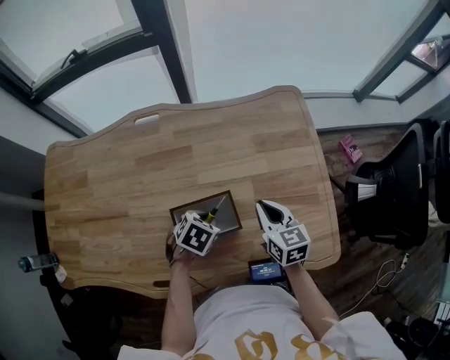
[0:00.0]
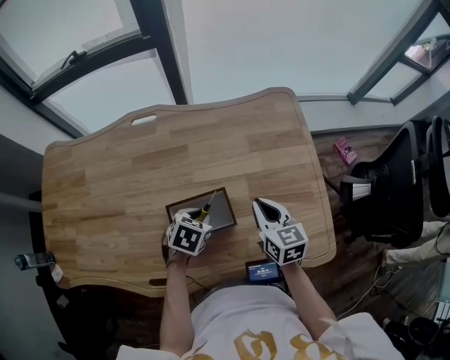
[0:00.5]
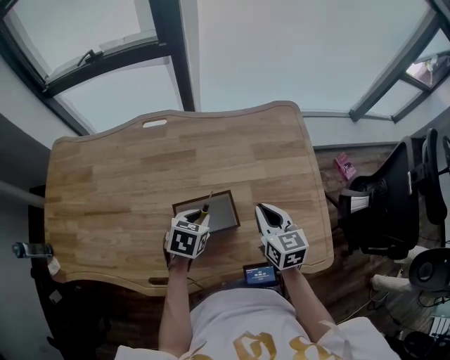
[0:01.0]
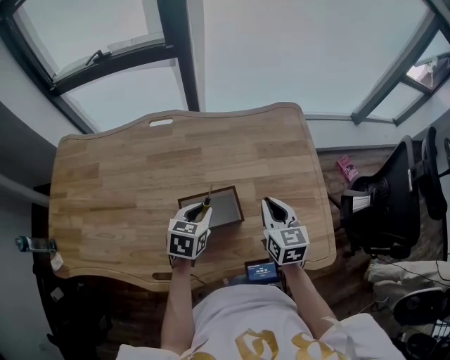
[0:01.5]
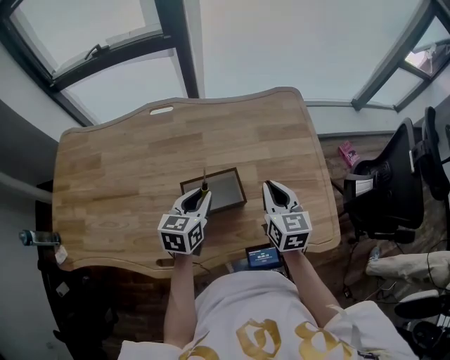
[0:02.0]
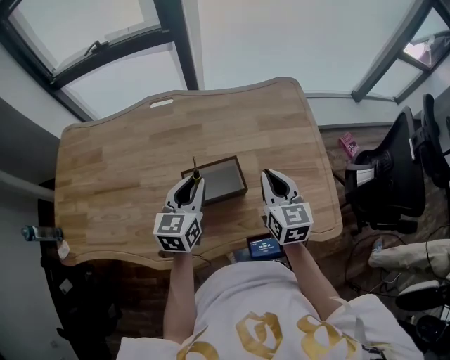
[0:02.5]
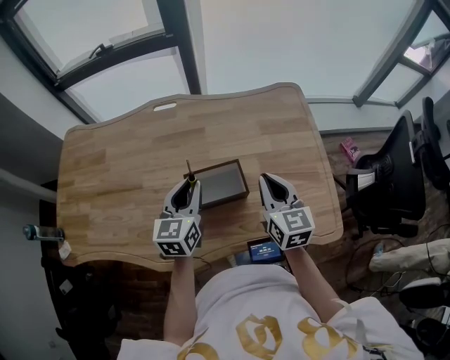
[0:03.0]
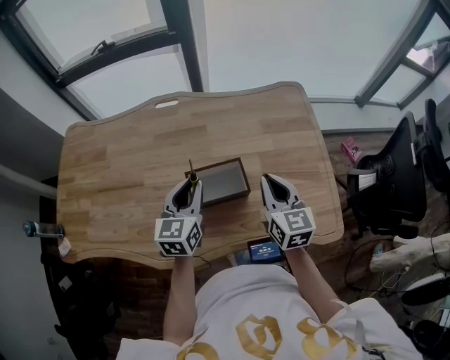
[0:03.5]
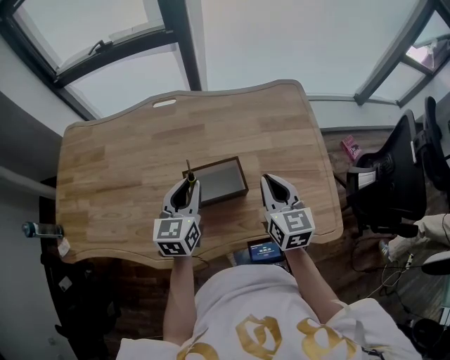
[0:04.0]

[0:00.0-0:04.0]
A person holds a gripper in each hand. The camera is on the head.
0:00.0 to 0:02.0: The left gripper heads upward, covering about 10 cm, and angles its fingers upward, by about 40 degrees, while the right gripper shifts approximately 5 cm upward.
0:02.0 to 0:04.0: The left gripper ends up roughly 5 cm from where it was.

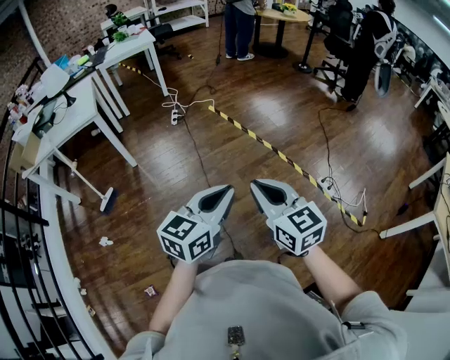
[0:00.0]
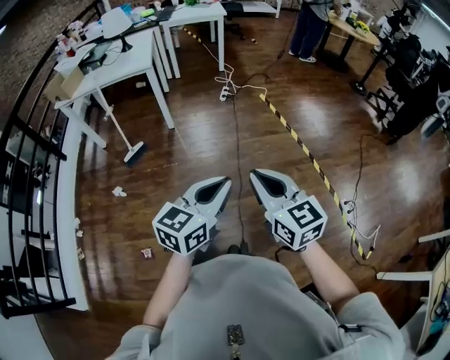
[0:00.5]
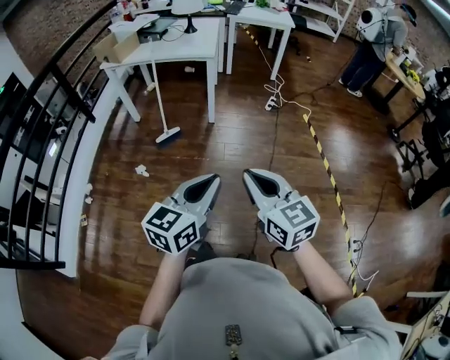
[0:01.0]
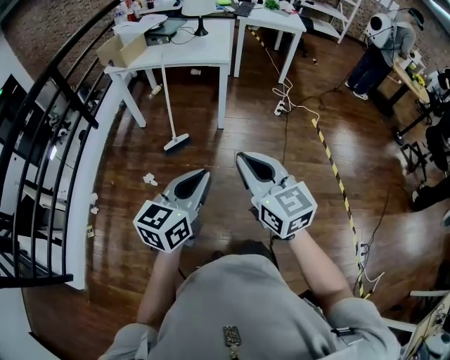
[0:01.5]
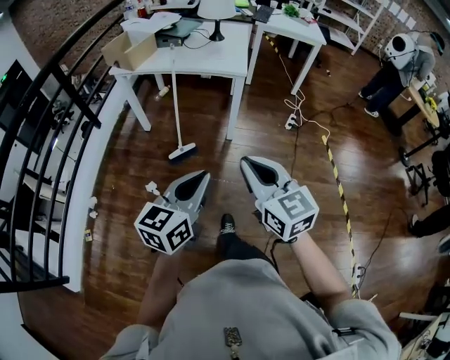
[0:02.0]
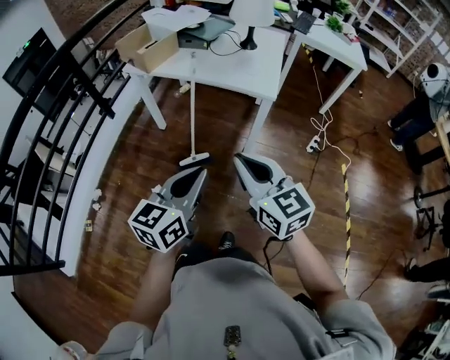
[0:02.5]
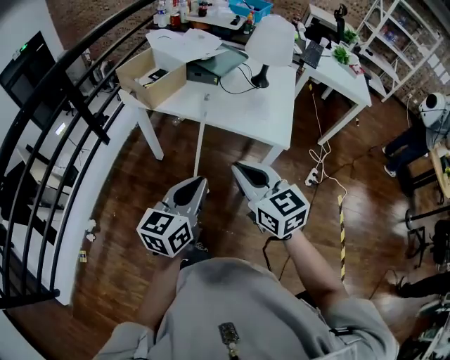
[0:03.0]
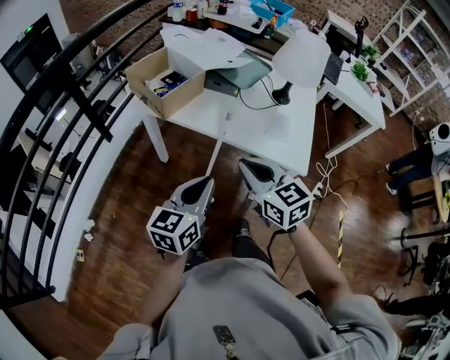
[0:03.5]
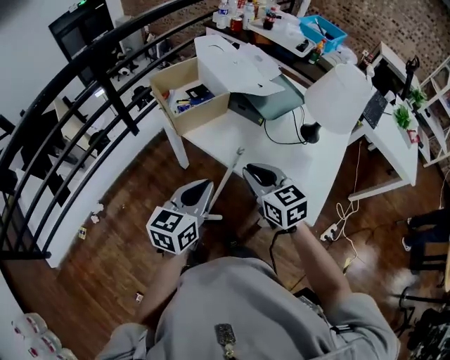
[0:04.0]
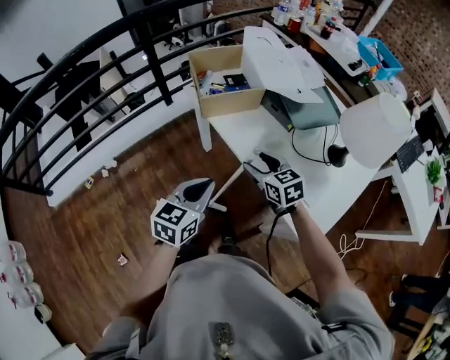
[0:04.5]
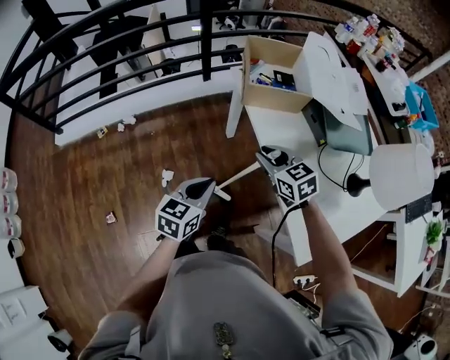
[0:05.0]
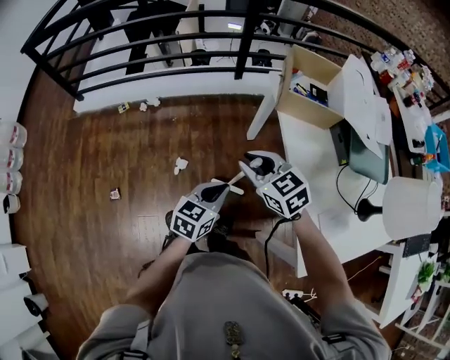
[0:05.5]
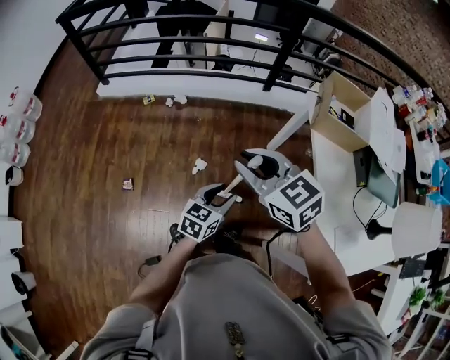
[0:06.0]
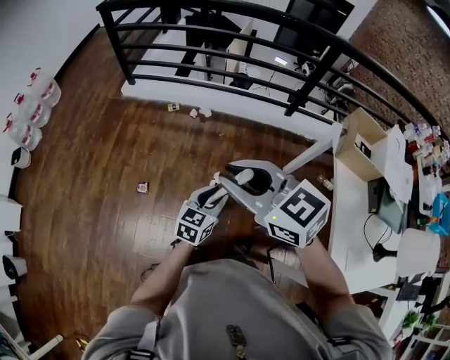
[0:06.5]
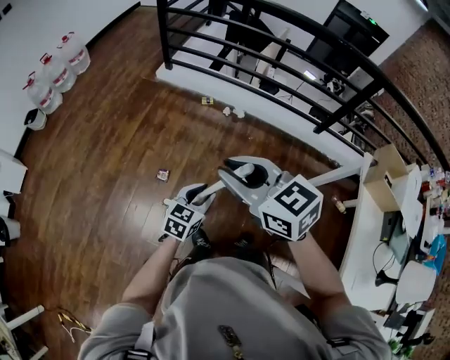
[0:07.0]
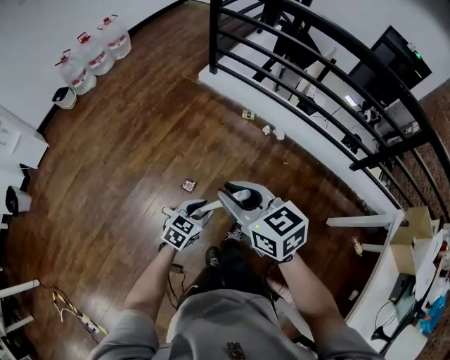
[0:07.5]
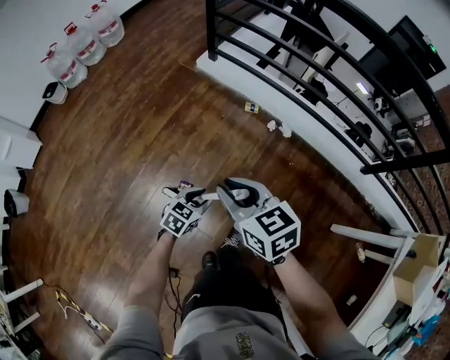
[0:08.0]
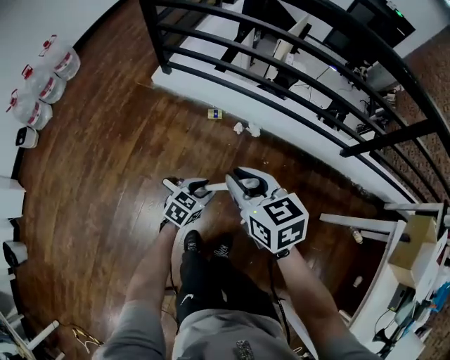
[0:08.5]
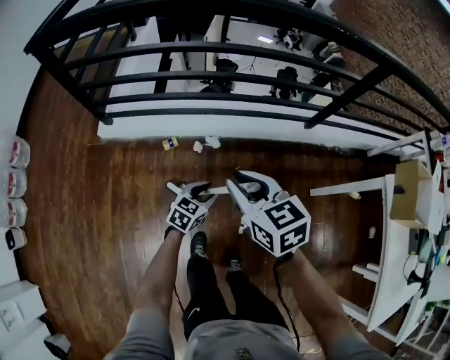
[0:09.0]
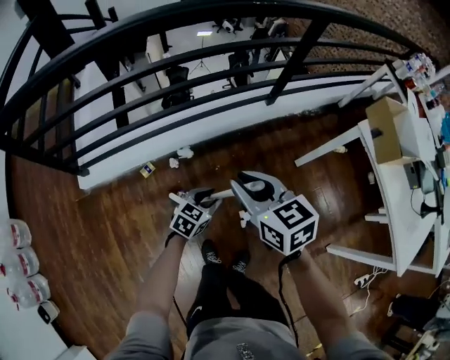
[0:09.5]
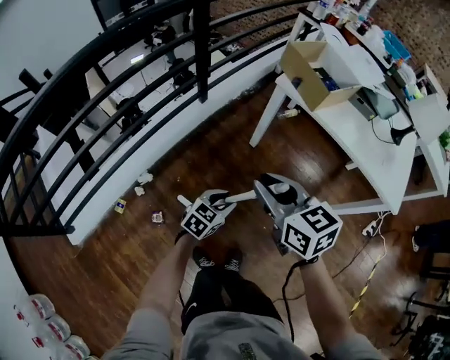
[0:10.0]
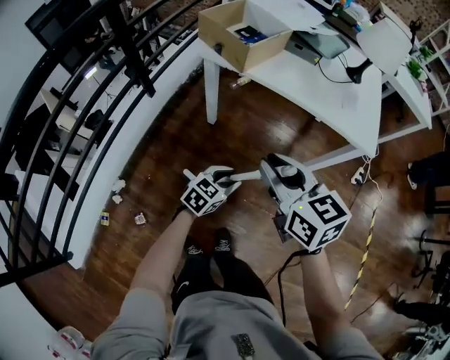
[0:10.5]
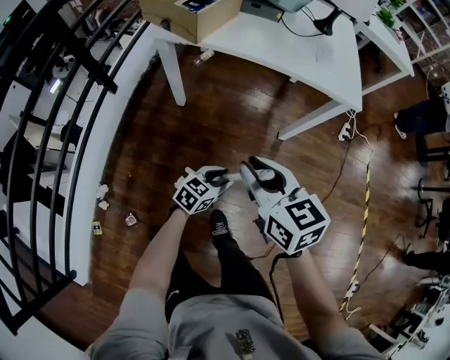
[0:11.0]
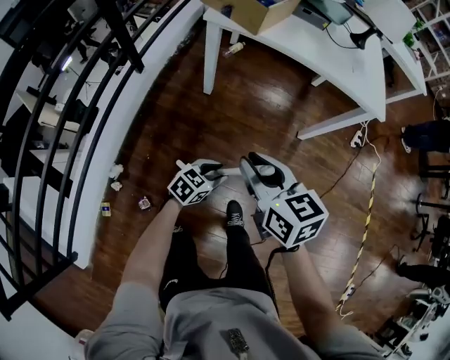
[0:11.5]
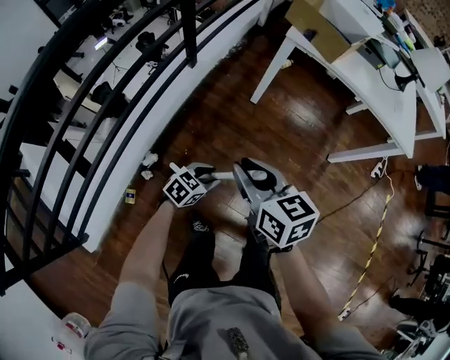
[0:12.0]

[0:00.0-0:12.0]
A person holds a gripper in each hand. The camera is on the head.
0:00.0 to 0:02.0: The two grippers travel together, roughly 60 cm. The right gripper rotates some 30 degrees. The left gripper turns by about 40 degrees.
0:02.0 to 0:04.0: The two grippers travel together, roughly 60 cm. The right gripper changes its angle by some 30 degrees; the left gripper swivels some 30 degrees.
0:04.0 to 0:06.0: The left gripper moves approximately 25 cm, swivels roughly 40 degrees, and opens its fingers, while the right gripper moves approximately 10 cm downward and comes back, turns by roughly 70 degrees, and opens and closes again.
0:06.0 to 0:08.0: The two grippers travel together, approximately 50 cm. The left gripper swivels some 30 degrees; the right gripper turns by about 30 degrees.
0:08.0 to 0:10.0: The pair of grippers is taken roughly 50 cm. The right gripper turns by roughly 90 degrees; the left gripper rotates approximately 90 degrees.
0:10.0 to 0:12.0: The left gripper changes its angle by some 20 degrees; the right gripper moves about 15 cm.

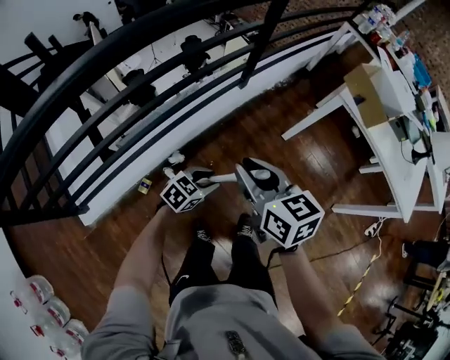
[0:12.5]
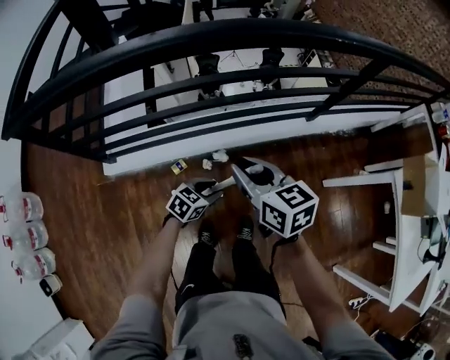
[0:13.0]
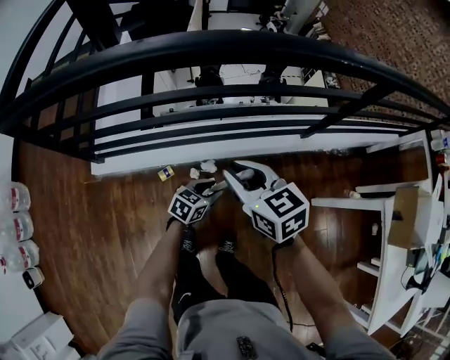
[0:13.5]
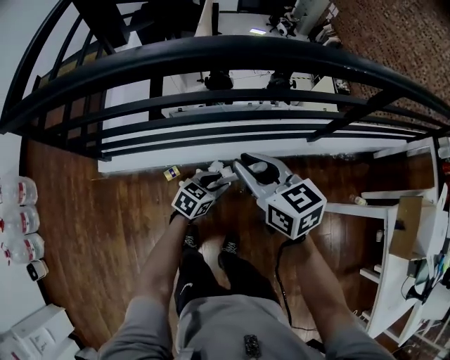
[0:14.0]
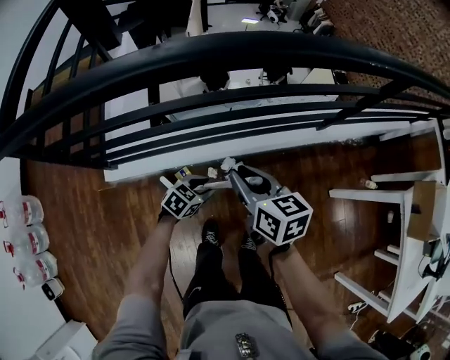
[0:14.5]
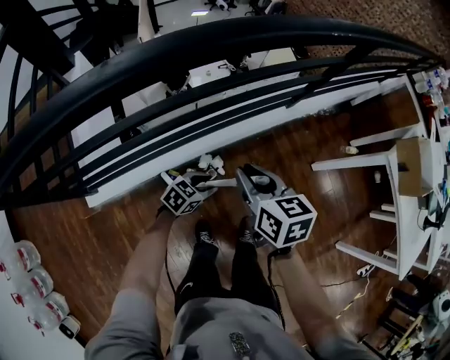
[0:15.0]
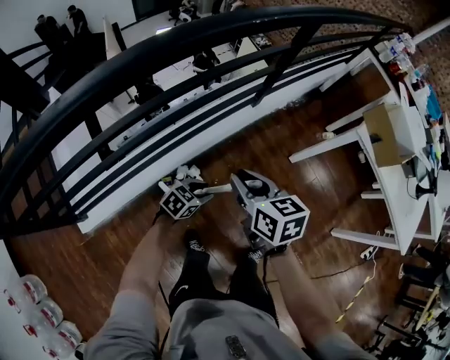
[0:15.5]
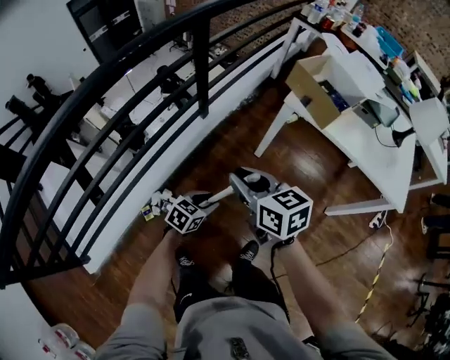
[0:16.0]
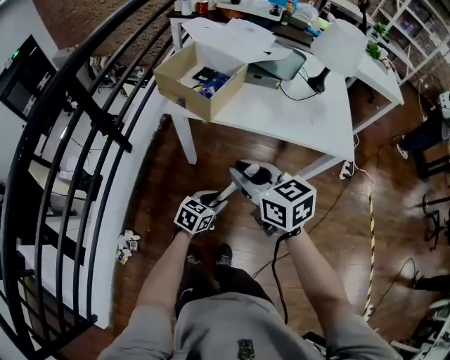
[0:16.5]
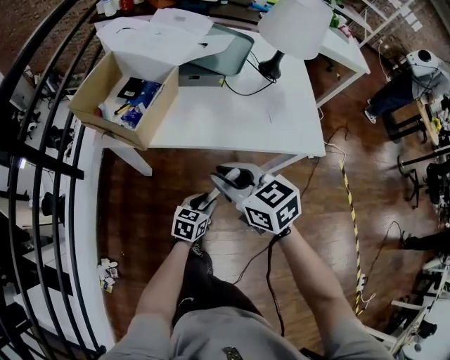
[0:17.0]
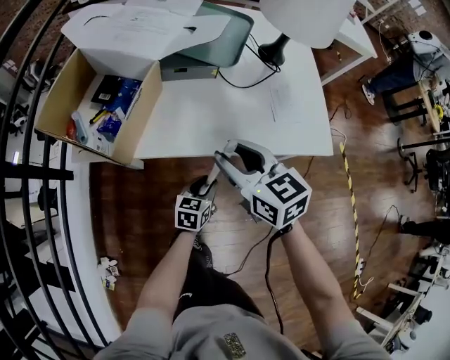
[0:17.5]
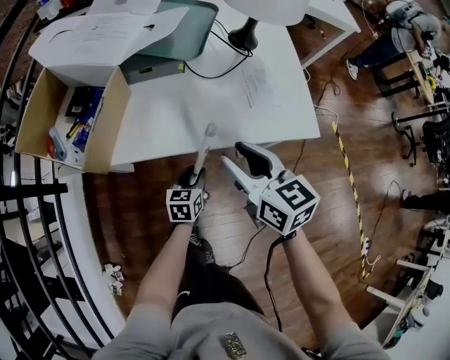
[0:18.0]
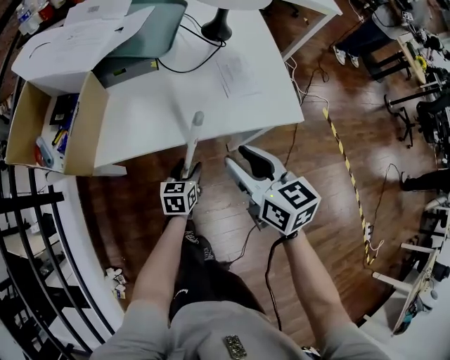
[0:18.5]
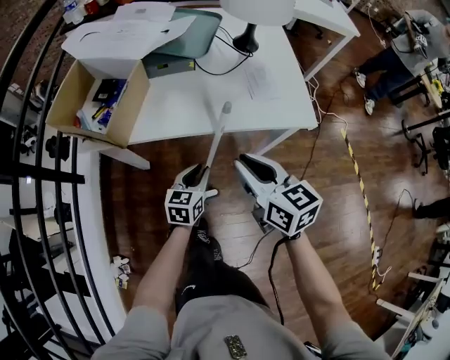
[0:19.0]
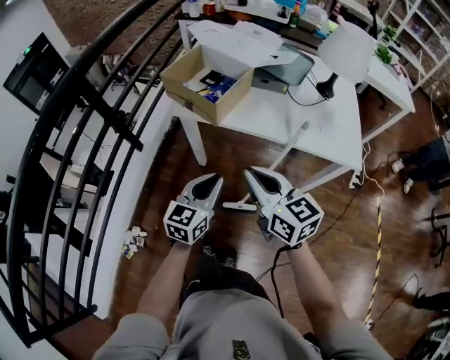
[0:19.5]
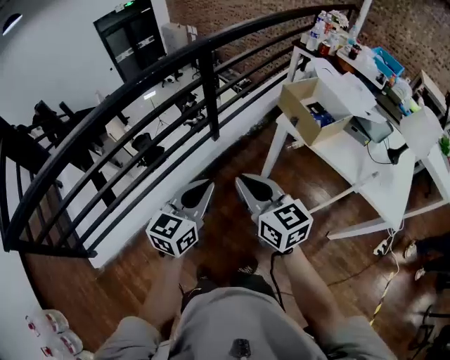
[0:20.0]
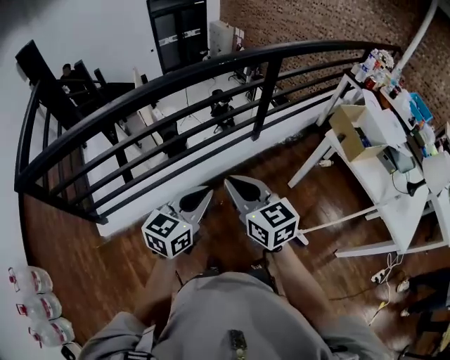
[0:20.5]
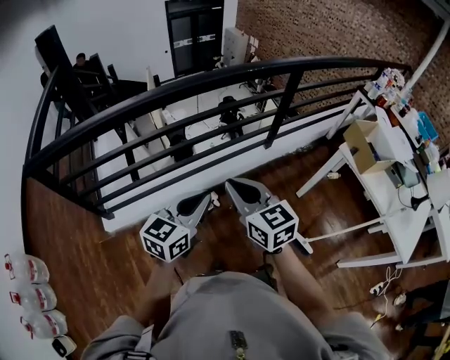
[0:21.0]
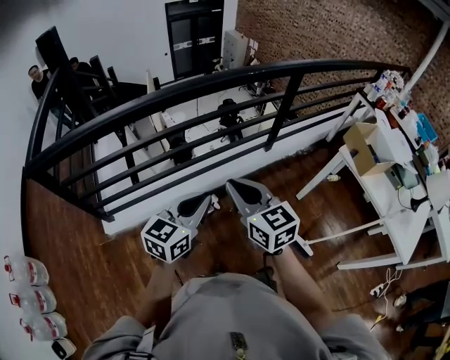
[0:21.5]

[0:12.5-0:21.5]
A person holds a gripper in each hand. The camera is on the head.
0:12.5 to 0:14.5: The right gripper shifts by some 25 cm, and rotates approximately 30 degrees. Meanwhile the left gripper changes place by approximately 25 cm, and changes its angle by about 40 degrees.
0:14.5 to 0:17.0: The pair of grippers is taken some 90 cm. The right gripper swivels about 60 degrees. The left gripper rotates some 60 degrees.
0:17.0 to 0:19.5: The left gripper goes roughly 25 cm upward and to the left, swivels some 30 degrees, and closes up. The right gripper is displaced backward and upward by approximately 15 cm, reaches some 15 cm to the right, then returns, and opens, then closes once more.
0:19.5 to 0:21.5: Both grippers are carried some 60 cm. The left gripper changes its angle by approximately 40 degrees. The right gripper swivels some 50 degrees.

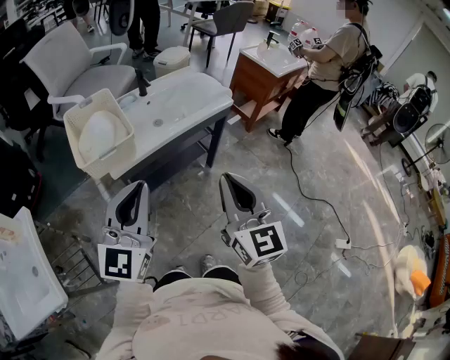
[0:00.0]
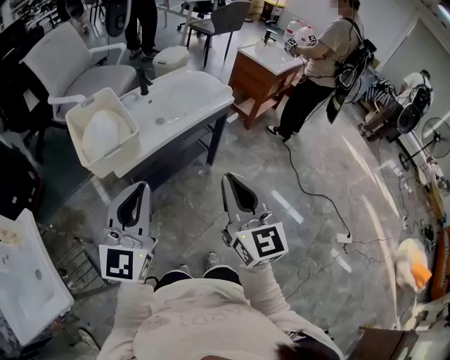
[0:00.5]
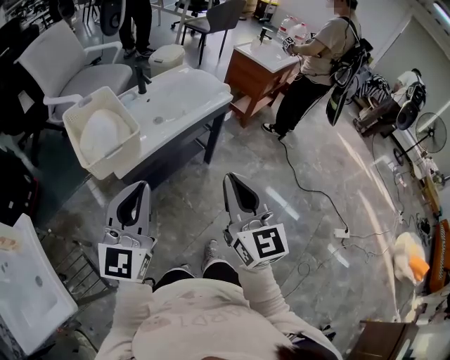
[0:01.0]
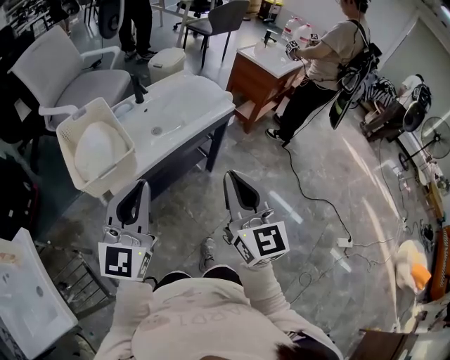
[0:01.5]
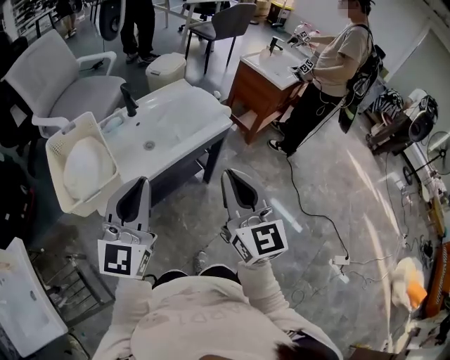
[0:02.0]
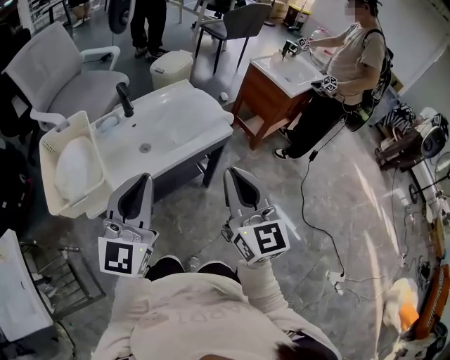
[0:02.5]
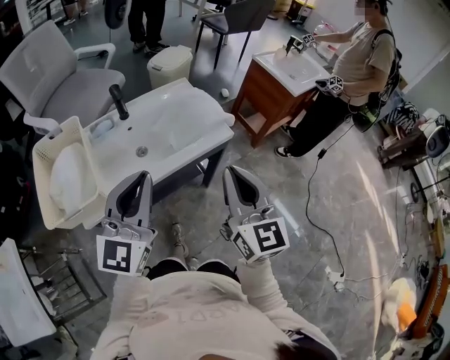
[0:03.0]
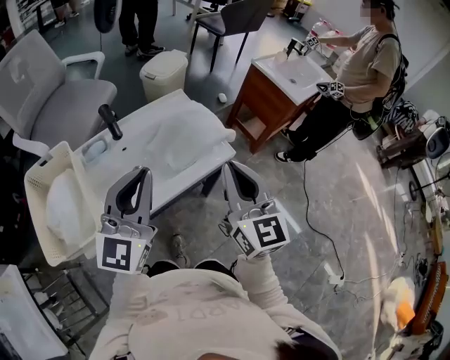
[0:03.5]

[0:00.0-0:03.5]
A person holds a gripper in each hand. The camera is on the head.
0:00.0 to 0:02.0: The two grippers go some 20 cm forward.
0:02.0 to 0:03.5: Both grippers travel together forward, some 25 cm.
